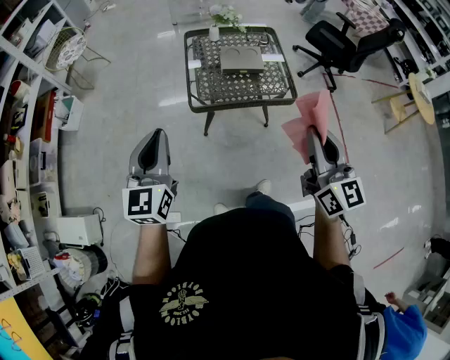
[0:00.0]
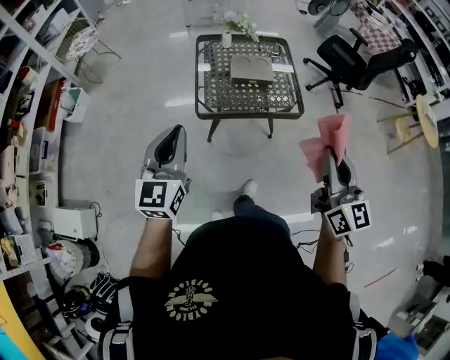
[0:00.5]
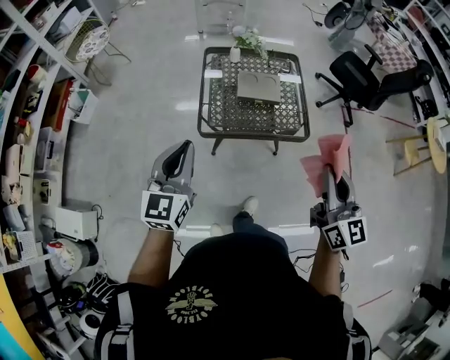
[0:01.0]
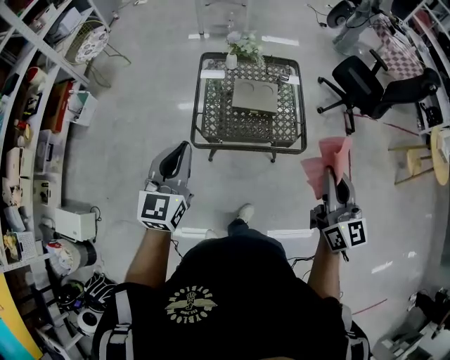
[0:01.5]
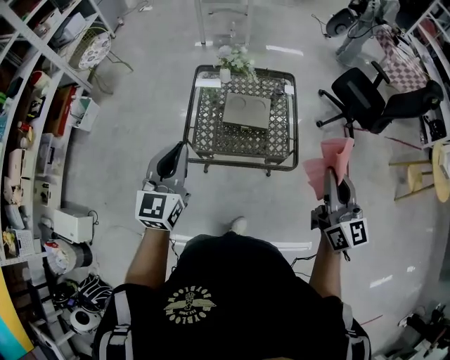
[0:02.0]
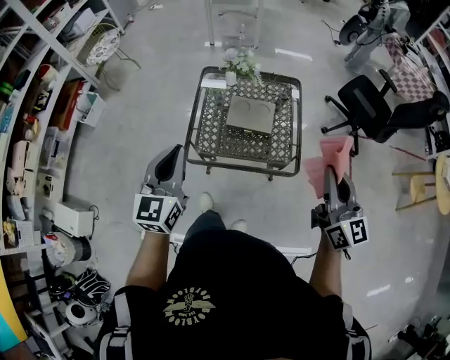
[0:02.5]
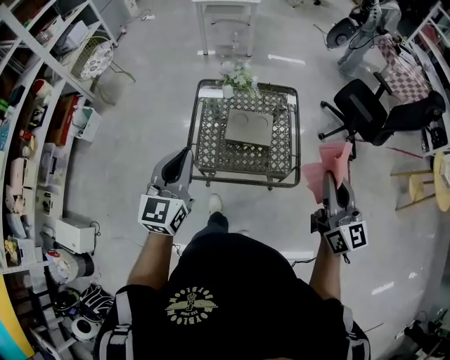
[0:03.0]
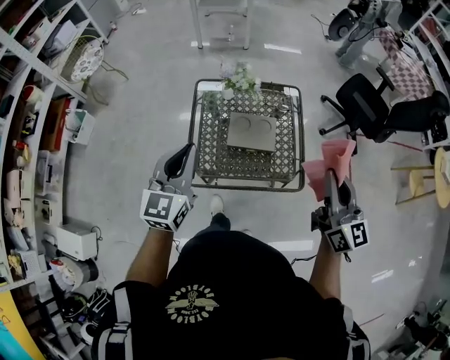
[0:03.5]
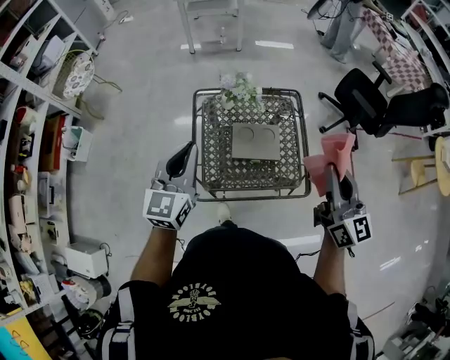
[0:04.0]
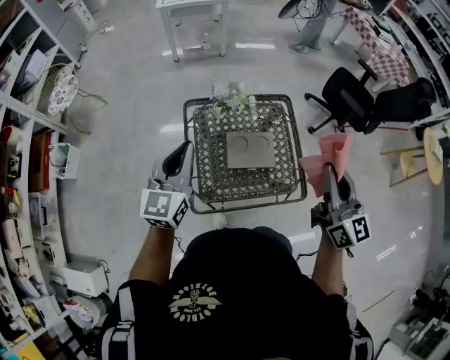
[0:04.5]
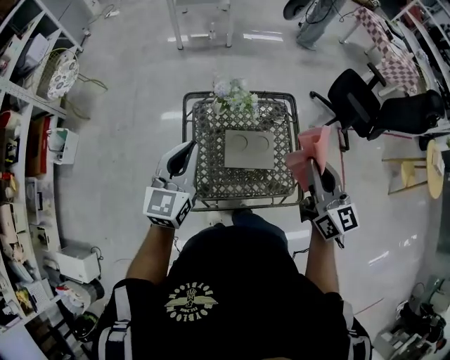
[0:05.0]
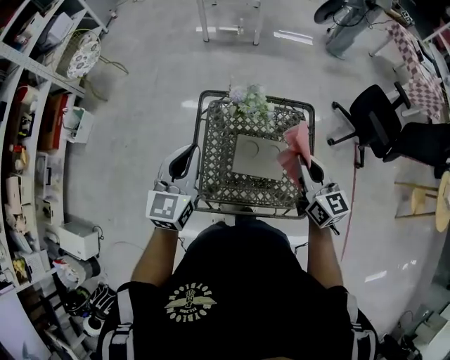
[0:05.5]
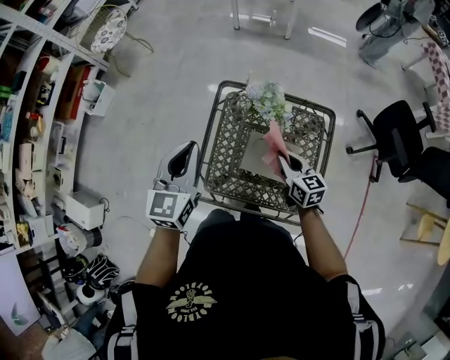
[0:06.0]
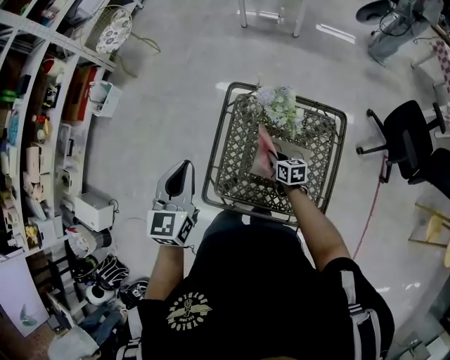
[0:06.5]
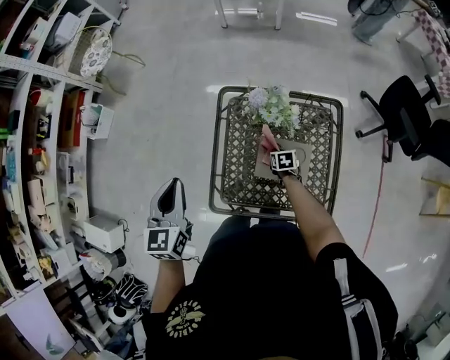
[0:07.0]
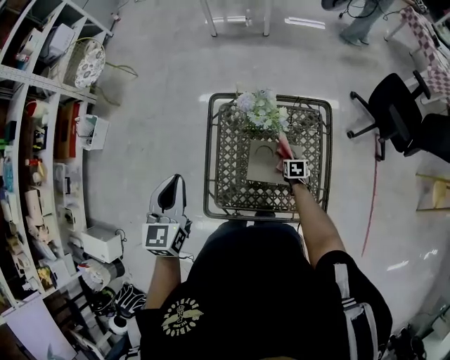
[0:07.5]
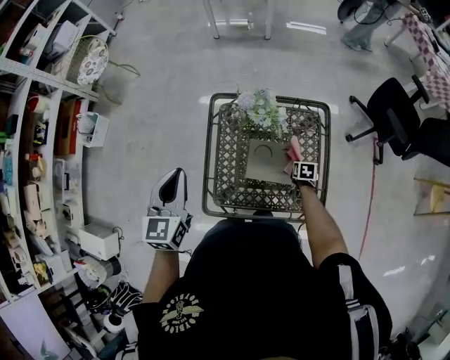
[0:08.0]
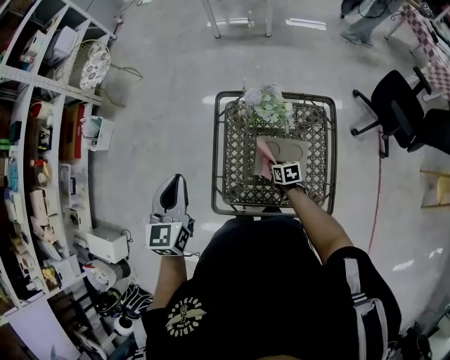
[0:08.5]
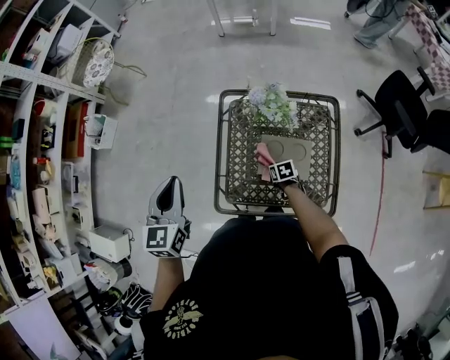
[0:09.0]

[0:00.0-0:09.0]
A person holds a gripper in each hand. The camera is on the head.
0:00.0 to 0:02.0: The two grippers go roughly 30 cm forward and to the right.
0:02.0 to 0:04.5: The right gripper is displaced forward and to the left by some 25 cm. Meanwhile the left gripper shifts approximately 30 cm forward.
0:04.5 to 0:07.0: The left gripper moves downward, some 10 cm, and rotates about 30 degrees. Meanwhile the right gripper shifts approximately 60 cm downward, and angles its fingers downward, by roughly 70 degrees.
0:07.0 to 0:09.0: The right gripper moves backward, roughly 5 cm, and goes to the right and returns, roughly 15 cm each way.

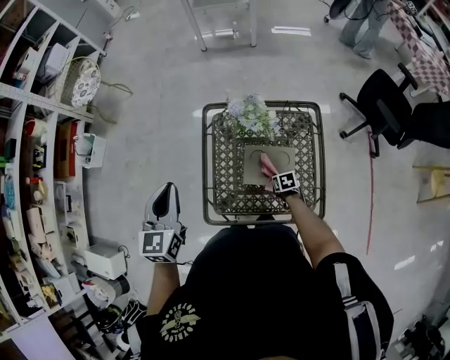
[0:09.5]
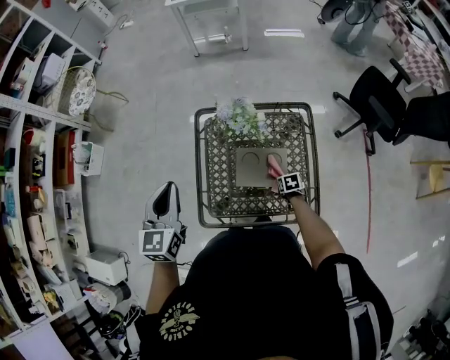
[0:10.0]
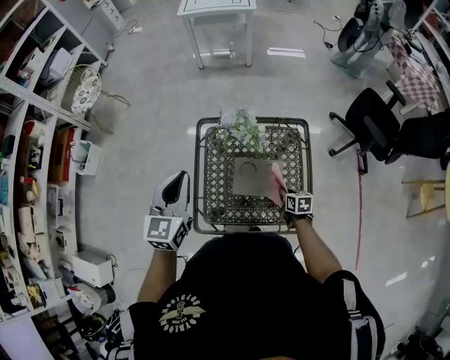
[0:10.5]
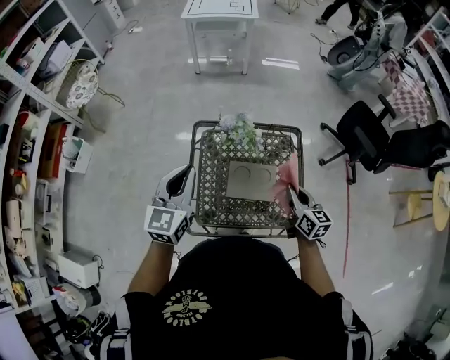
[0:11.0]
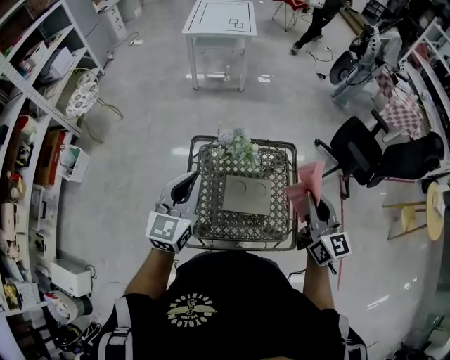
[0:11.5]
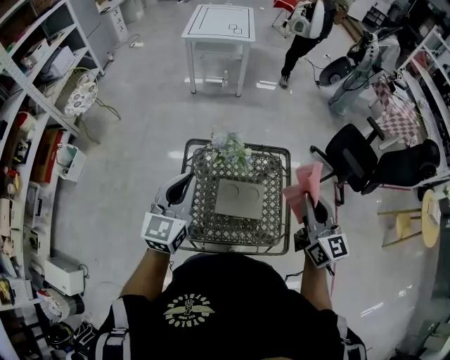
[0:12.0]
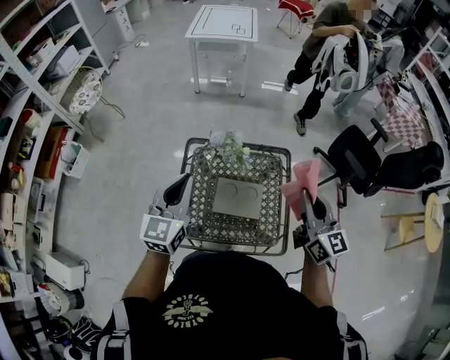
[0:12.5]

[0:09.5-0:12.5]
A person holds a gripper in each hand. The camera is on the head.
0:09.5 to 0:11.0: The left gripper shifts roughly 10 cm to the right, while the right gripper goes roughly 30 cm upward, and points its fingers roughly 50 degrees further upward.
0:11.0 to 0:12.5: The left gripper is displaced to the right by some 5 cm, while the right gripper travels upward by some 20 cm, and turns by about 30 degrees.

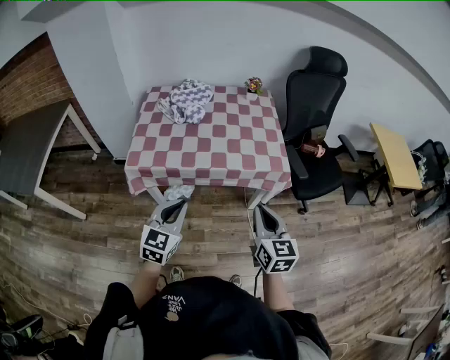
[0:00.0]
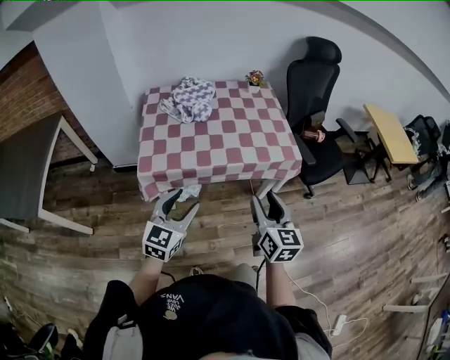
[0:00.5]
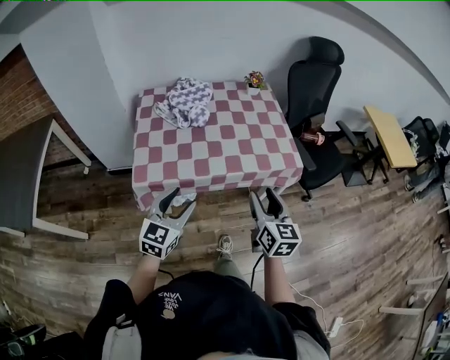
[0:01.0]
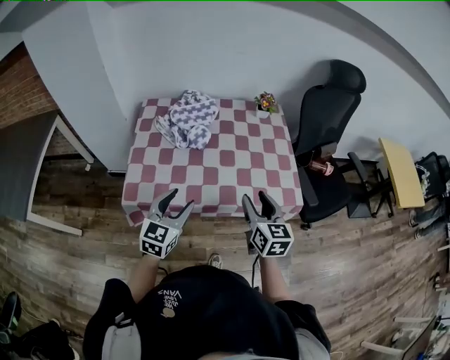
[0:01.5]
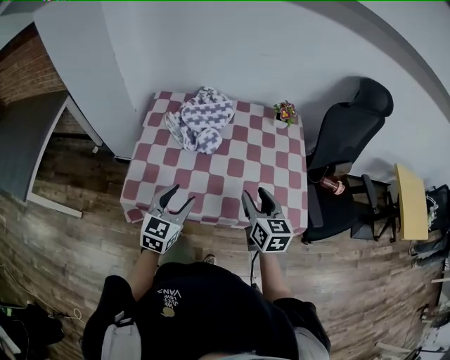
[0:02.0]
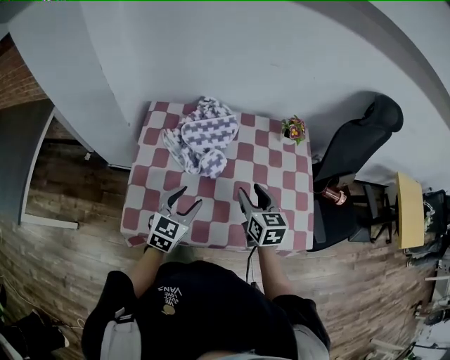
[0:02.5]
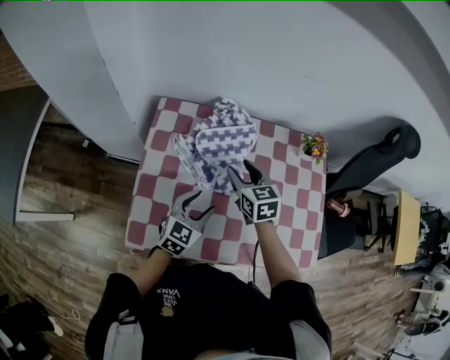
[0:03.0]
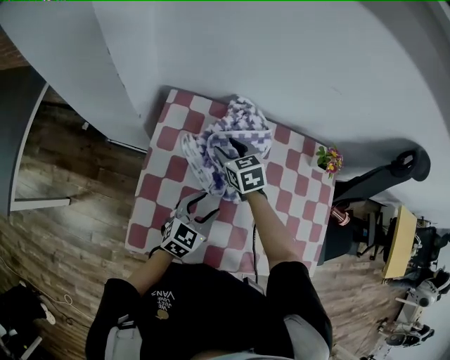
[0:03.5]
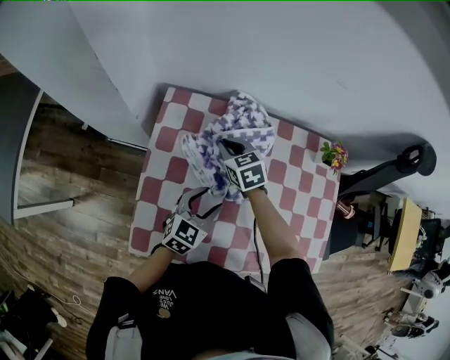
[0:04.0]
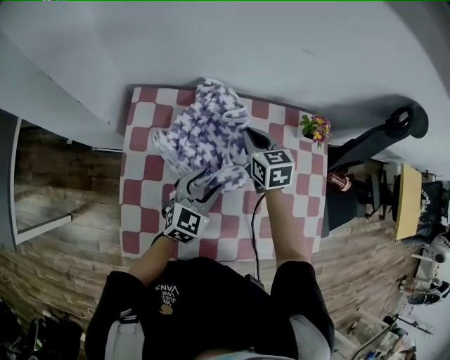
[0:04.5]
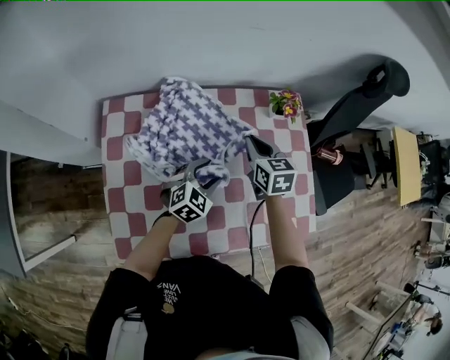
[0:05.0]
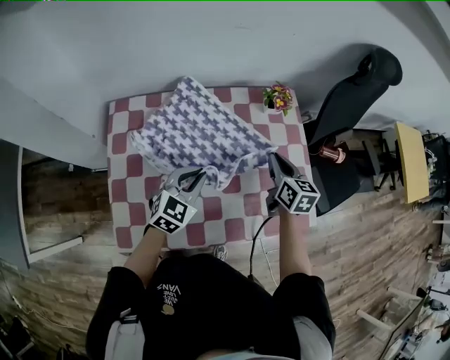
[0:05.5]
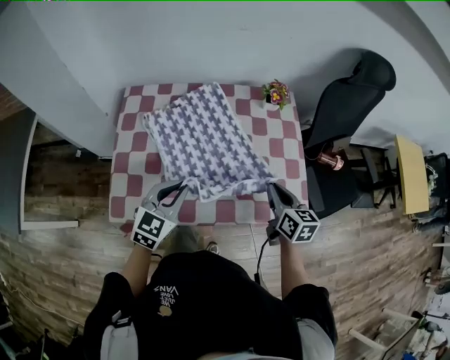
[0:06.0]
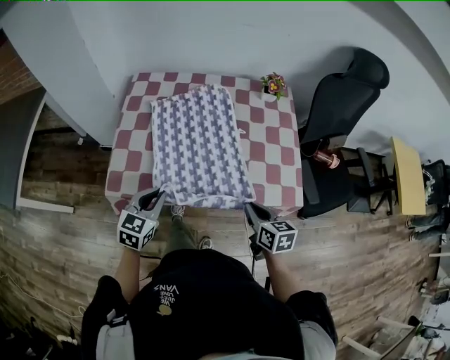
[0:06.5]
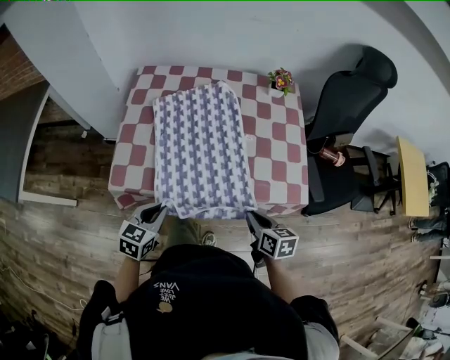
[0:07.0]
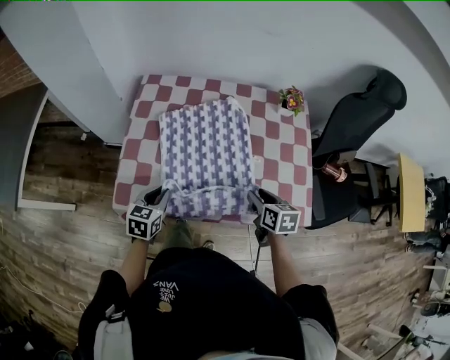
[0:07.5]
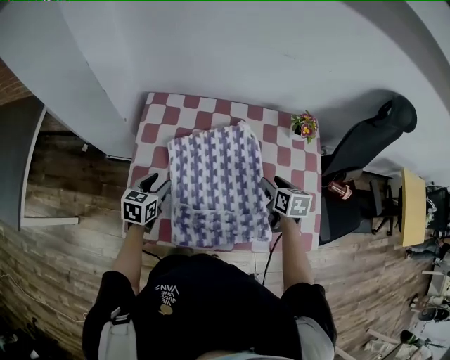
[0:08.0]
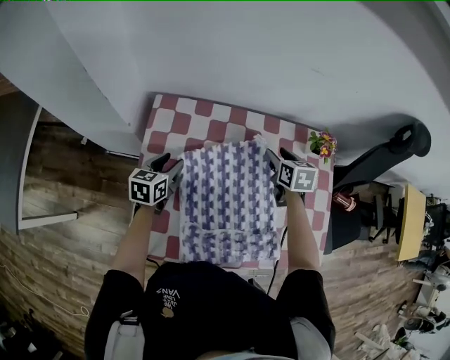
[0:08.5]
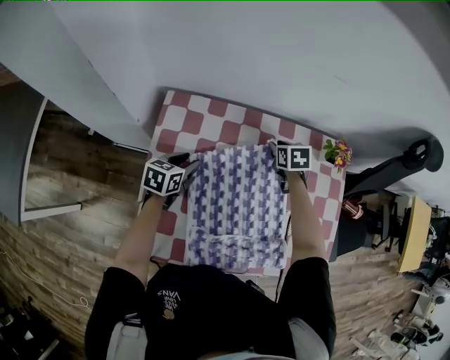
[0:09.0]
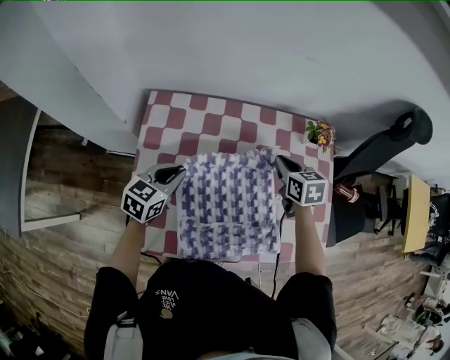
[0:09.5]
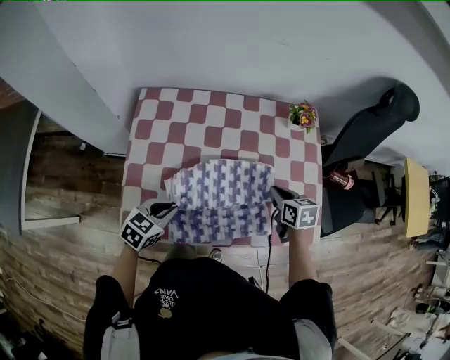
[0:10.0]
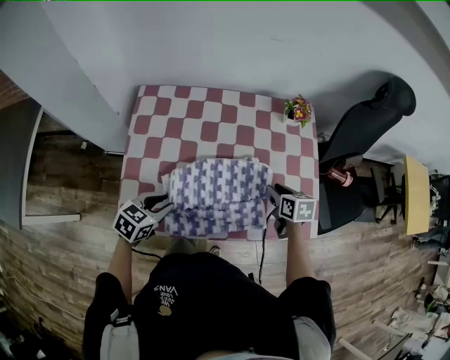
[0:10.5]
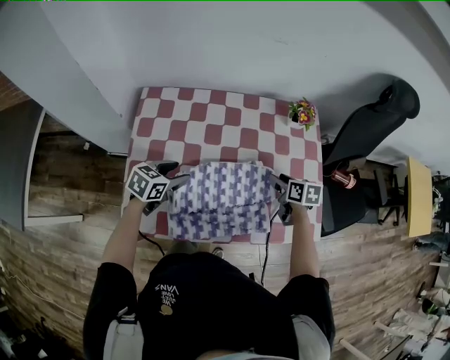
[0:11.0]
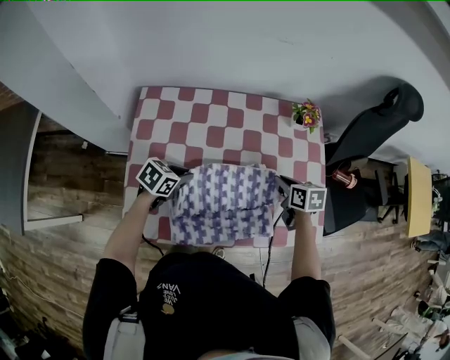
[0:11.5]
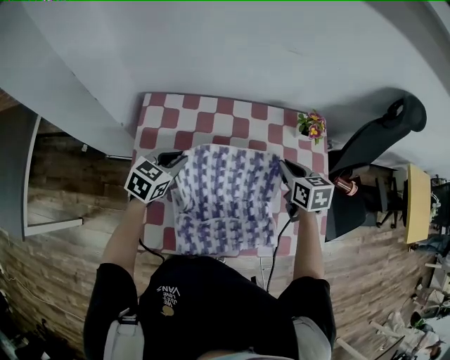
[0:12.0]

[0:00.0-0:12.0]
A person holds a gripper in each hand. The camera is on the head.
0:00.0 to 0:02.0: Both grippers travel together forward, approximately 25 cm. The right gripper opens up, while the left gripper opens up.
0:02.0 to 0:04.0: The right gripper goes about 40 cm forward and to the left, rotates approximately 40 degrees, and closes up; the left gripper shifts roughly 20 cm forward and downward.
0:04.0 to 0:06.0: The left gripper travels backward, upward and to the right by roughly 15 cm, and closes up. The right gripper travels to the right and backward by about 50 cm, and changes its angle by approximately 40 degrees.
0:06.0 to 0:08.0: The right gripper heads forward, to the left and downward, covering about 15 cm, and opens up; the left gripper is displaced to the left, downward and forward by about 25 cm, swivels roughly 30 degrees, and opens its fingers.
0:08.0 to 0:10.0: The right gripper travels forward and back again, roughly 20 cm each way, and closes. The left gripper travels backward and to the right by some 10 cm, turns by roughly 30 degrees, and closes its fingers.
0:10.0 to 0:12.0: The left gripper moves forward, approximately 20 cm, and opens, then closes again. Meanwhile the right gripper shifts some 15 cm forward, upward and to the left, and opens and closes again.

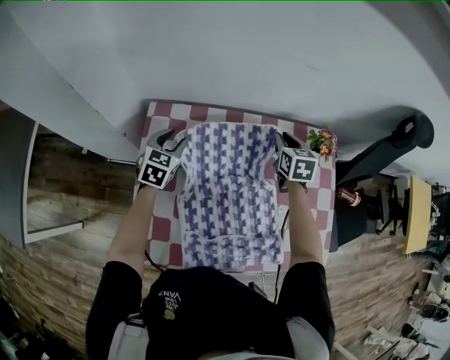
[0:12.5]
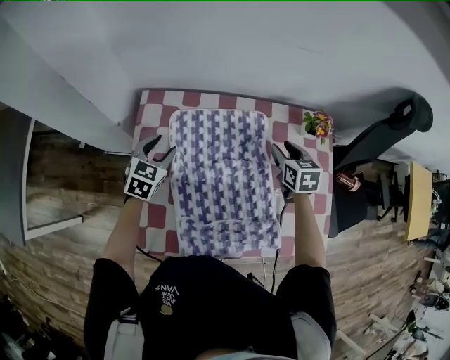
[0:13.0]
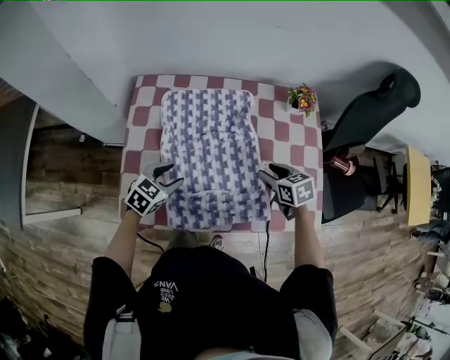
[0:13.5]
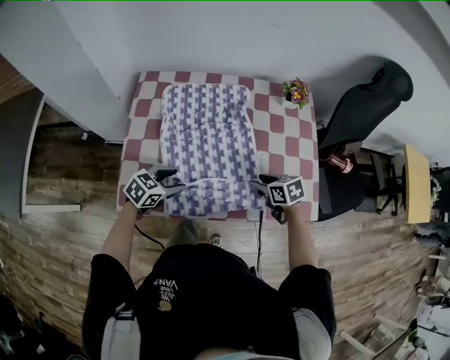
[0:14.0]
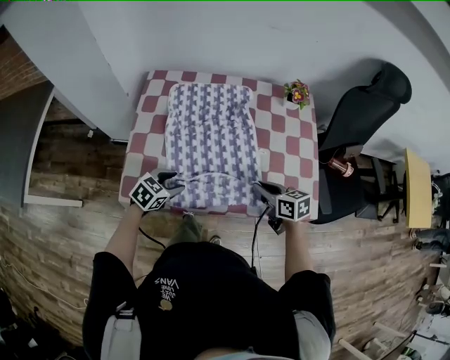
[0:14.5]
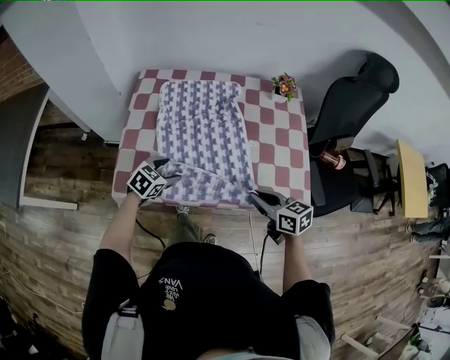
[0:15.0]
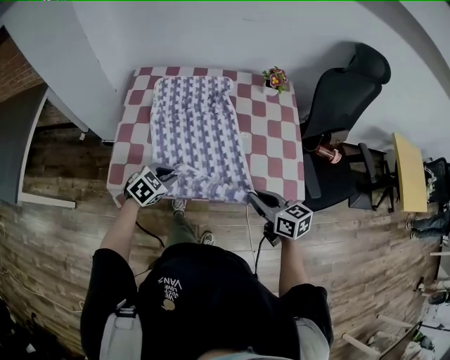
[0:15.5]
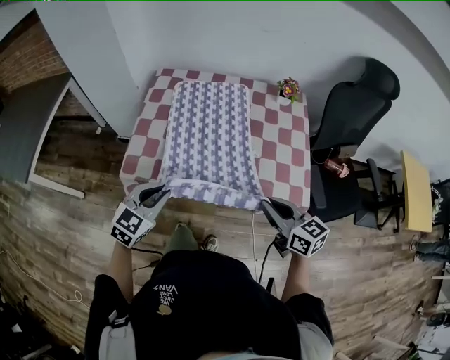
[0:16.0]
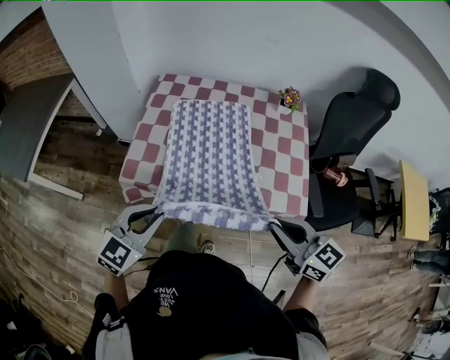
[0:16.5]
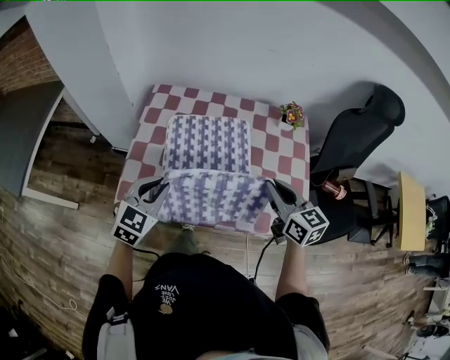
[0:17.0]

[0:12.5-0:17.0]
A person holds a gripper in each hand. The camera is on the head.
0:12.5 to 0:14.5: Both grippers move backward, about 35 cm. The left gripper rotates approximately 30 degrees, and opens its fingers. Meanwhile the right gripper turns by about 40 degrees, and opens and closes again.
0:14.5 to 0:17.0: Both grippers move upward, approximately 20 cm. The right gripper swivels about 30 degrees. Meanwhile the left gripper changes its angle by about 30 degrees, and closes its fingers.
